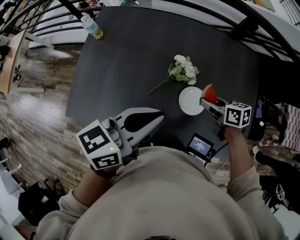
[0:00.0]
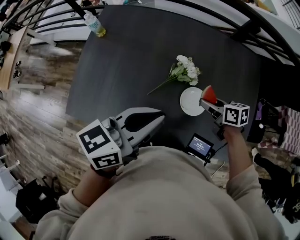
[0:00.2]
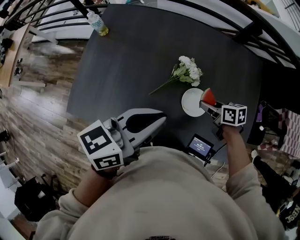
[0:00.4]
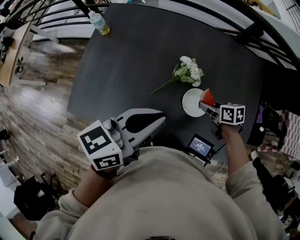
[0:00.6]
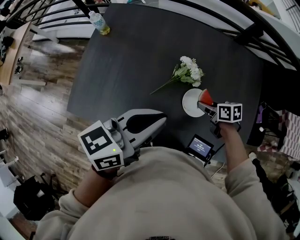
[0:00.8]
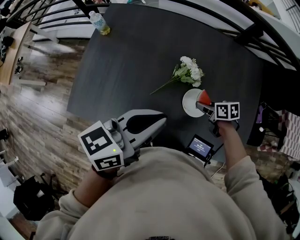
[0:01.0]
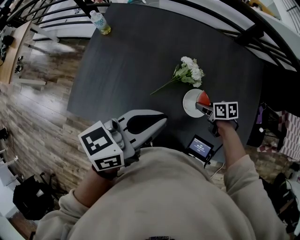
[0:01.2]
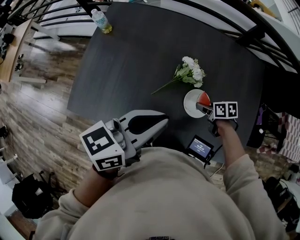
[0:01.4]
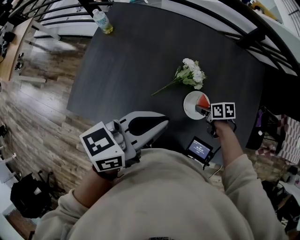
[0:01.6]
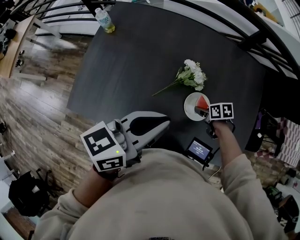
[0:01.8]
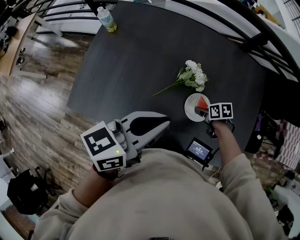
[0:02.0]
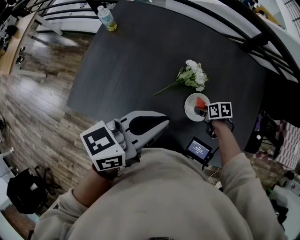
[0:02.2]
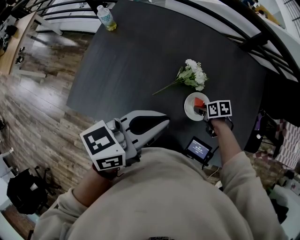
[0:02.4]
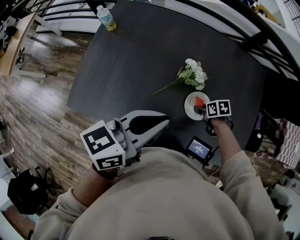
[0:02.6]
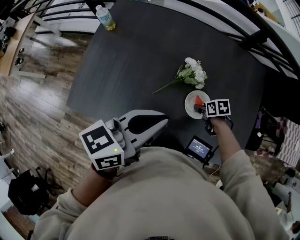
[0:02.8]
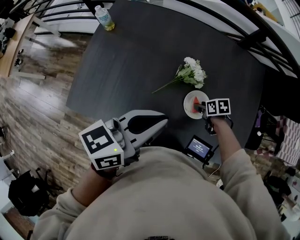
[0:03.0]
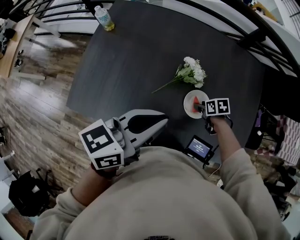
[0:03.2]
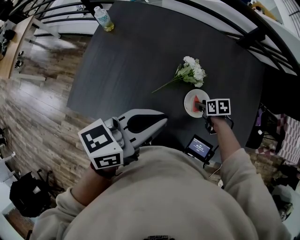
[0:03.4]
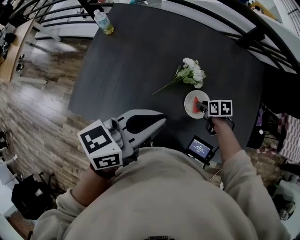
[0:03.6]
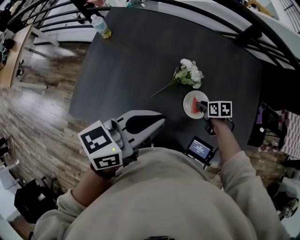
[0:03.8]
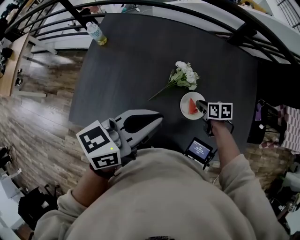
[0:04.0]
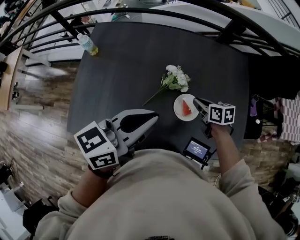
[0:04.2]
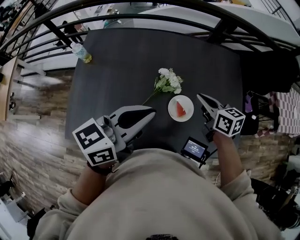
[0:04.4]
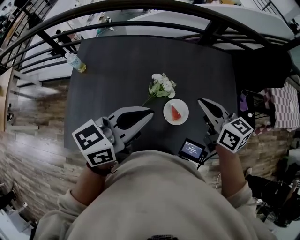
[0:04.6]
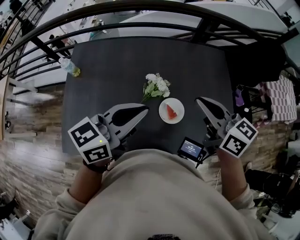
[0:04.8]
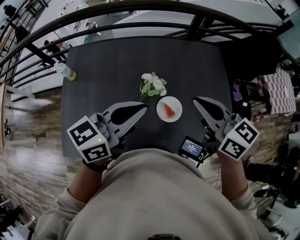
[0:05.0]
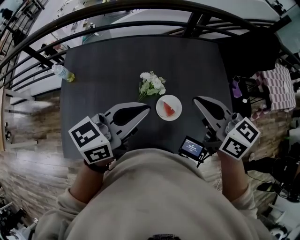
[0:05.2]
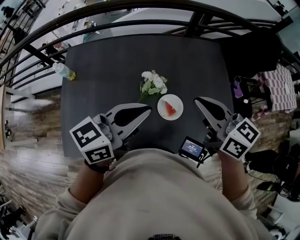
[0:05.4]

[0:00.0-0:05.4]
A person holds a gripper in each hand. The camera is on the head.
0:00.0 to 0:01.4: The right gripper heads downward, covering some 10 cm.
0:01.4 to 0:02.8: There are only small adjustments of the grippers.
0:02.8 to 0:04.0: The right gripper shifts about 5 cm upward, and closes up.
0:04.0 to 0:05.4: The right gripper is displaced upward by about 35 cm, and angles its fingers upward, by some 40 degrees. Meanwhile the left gripper shifts by some 5 cm.

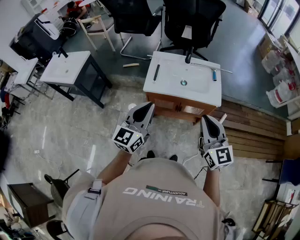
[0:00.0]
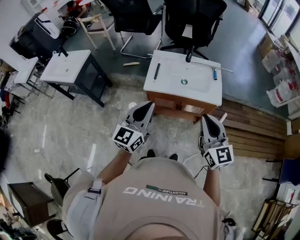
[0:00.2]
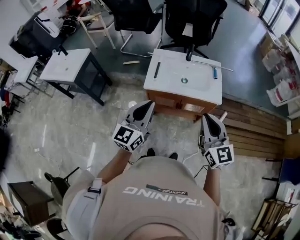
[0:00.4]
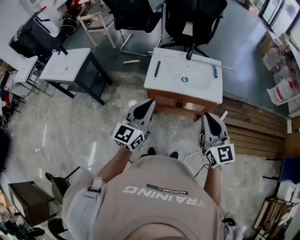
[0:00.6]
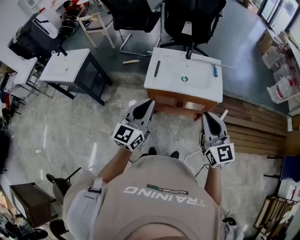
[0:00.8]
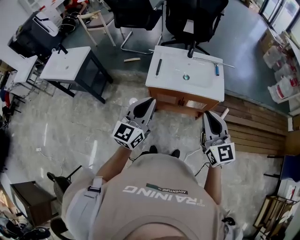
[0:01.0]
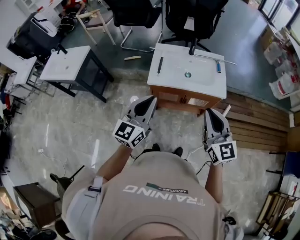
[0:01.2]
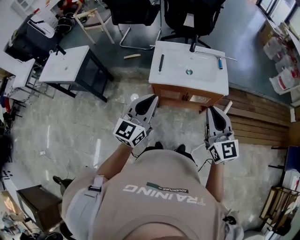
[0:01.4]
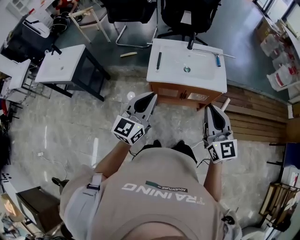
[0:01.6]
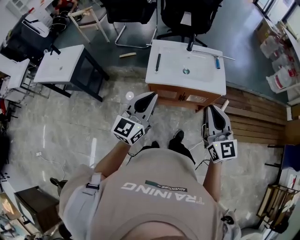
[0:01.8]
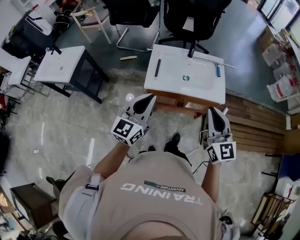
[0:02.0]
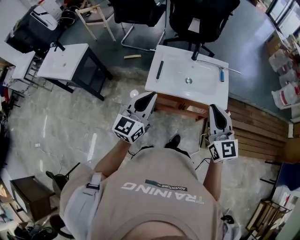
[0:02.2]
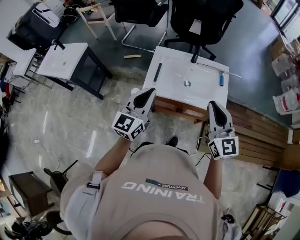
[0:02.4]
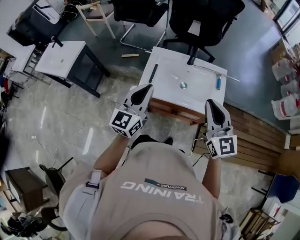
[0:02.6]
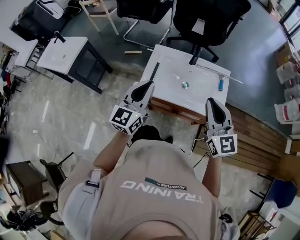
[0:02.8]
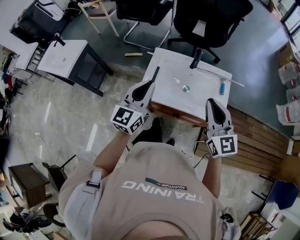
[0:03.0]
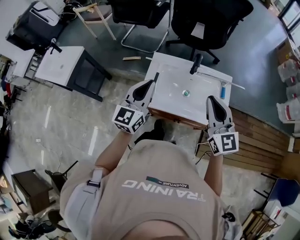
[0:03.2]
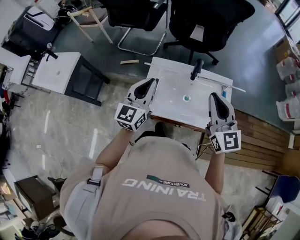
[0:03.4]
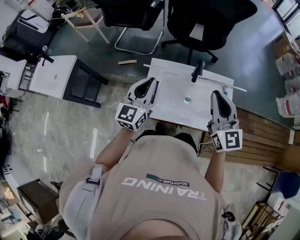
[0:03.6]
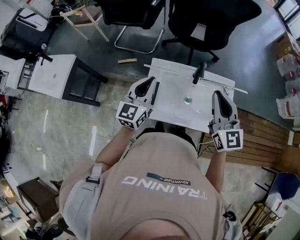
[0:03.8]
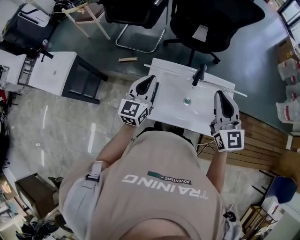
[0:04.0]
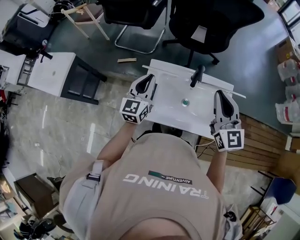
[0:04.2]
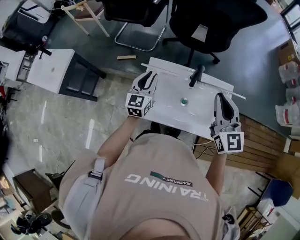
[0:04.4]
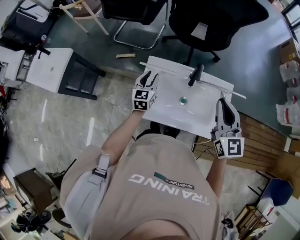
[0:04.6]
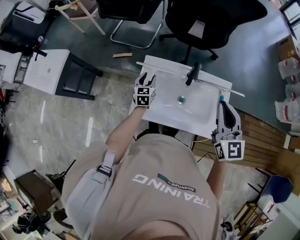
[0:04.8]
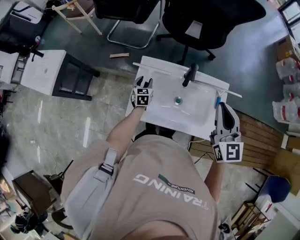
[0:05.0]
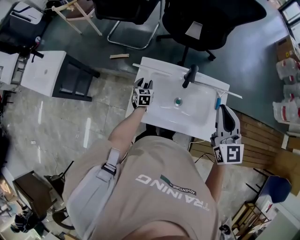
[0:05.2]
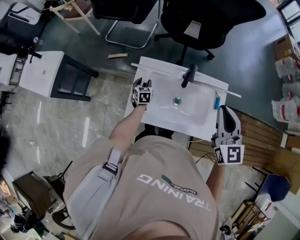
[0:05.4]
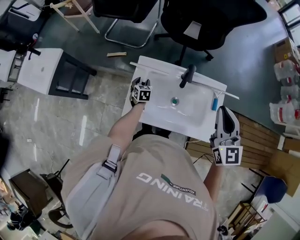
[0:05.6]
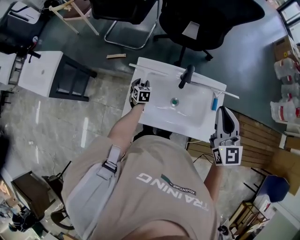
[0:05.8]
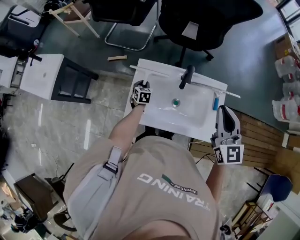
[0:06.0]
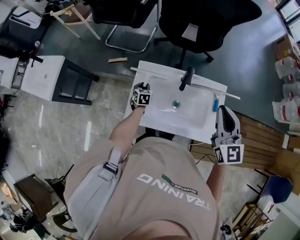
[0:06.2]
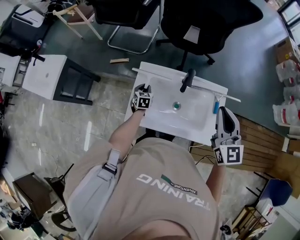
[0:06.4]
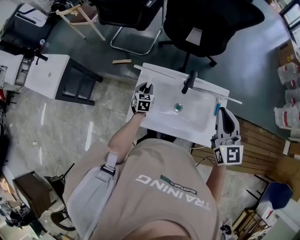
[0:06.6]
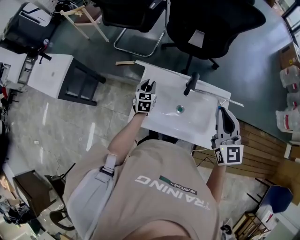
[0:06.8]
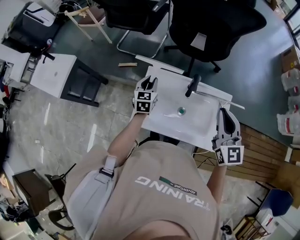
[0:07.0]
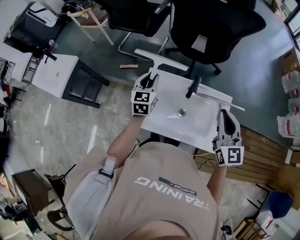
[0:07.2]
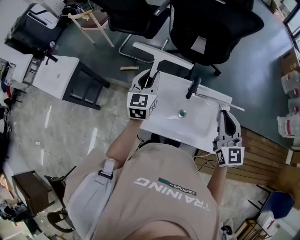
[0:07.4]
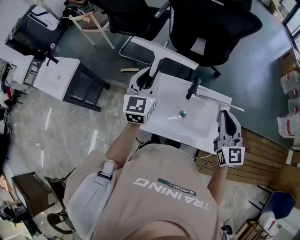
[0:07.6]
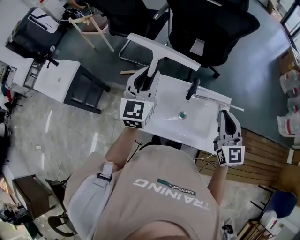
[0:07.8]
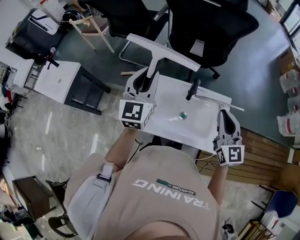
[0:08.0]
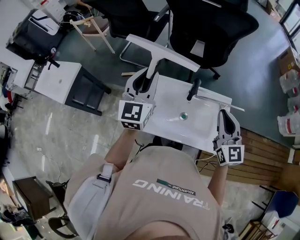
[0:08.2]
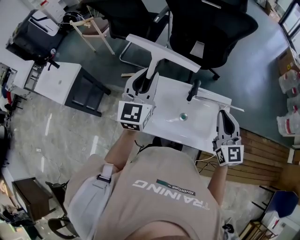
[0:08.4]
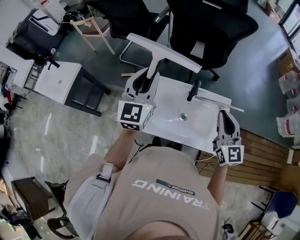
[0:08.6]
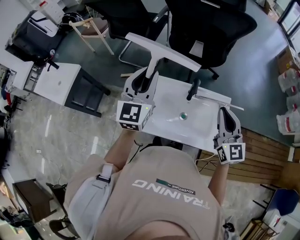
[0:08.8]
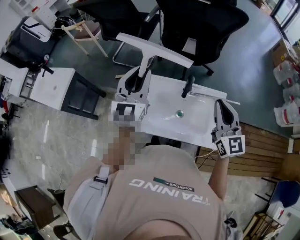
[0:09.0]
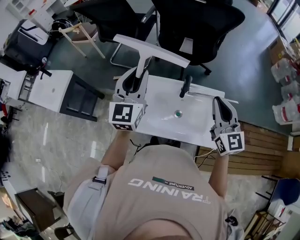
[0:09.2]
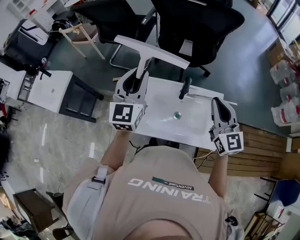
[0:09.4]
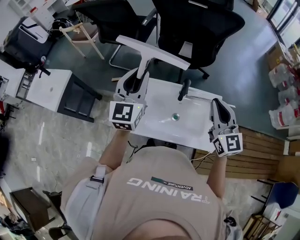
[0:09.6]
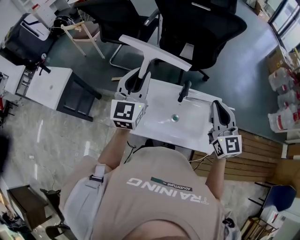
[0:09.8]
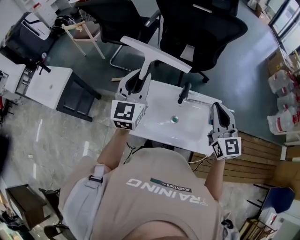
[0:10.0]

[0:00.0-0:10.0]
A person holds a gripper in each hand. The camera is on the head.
0:00.0 to 0:01.4: There are only small adjustments of the grippers.
0:01.4 to 0:02.8: The two grippers go about 20 cm forward.
0:02.8 to 0:04.2: Both grippers travel together forward, approximately 20 cm.
0:04.2 to 0:05.8: The right gripper goes roughly 5 cm to the right, while the left gripper shifts some 30 cm downward, tilts its fingers some 40 degrees downward, and opens its fingers.
0:05.8 to 0:07.2: The left gripper moves upward, some 30 cm, and swivels approximately 30 degrees.
0:07.2 to 0:08.6: The left gripper moves upward, approximately 20 cm, and turns by some 20 degrees.
0:08.6 to 0:10.0: The grippers move only a little.

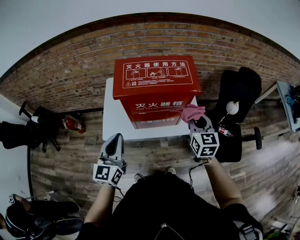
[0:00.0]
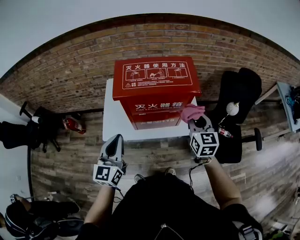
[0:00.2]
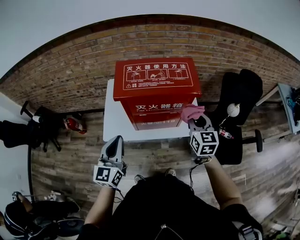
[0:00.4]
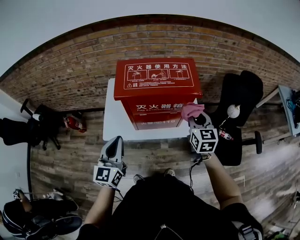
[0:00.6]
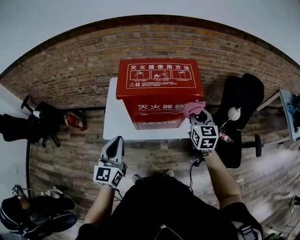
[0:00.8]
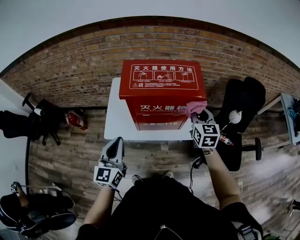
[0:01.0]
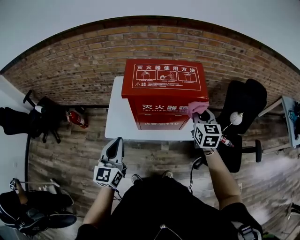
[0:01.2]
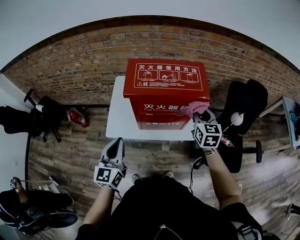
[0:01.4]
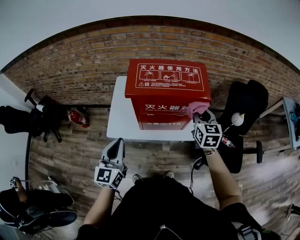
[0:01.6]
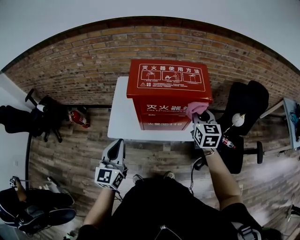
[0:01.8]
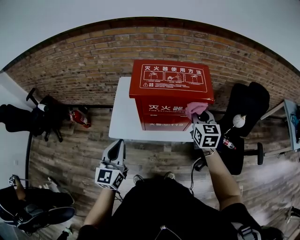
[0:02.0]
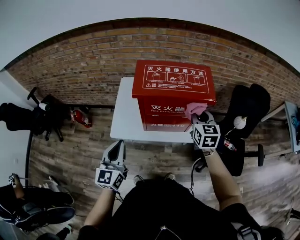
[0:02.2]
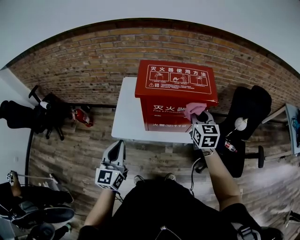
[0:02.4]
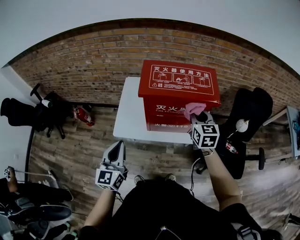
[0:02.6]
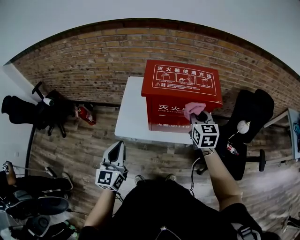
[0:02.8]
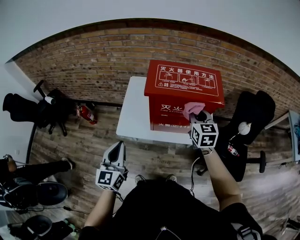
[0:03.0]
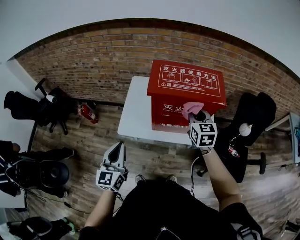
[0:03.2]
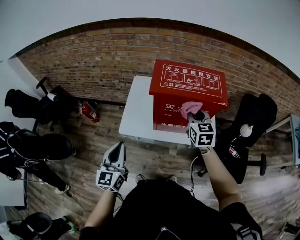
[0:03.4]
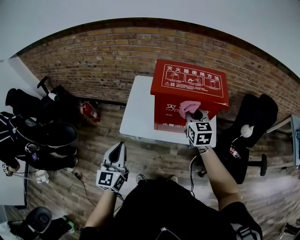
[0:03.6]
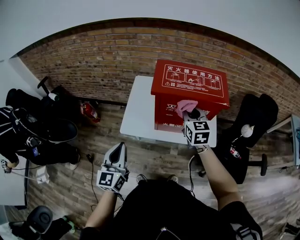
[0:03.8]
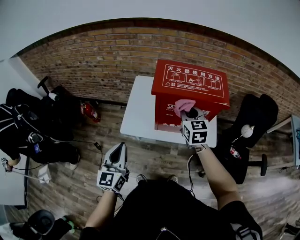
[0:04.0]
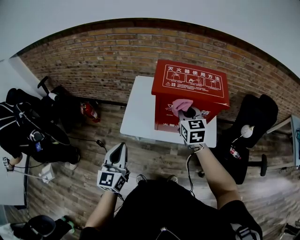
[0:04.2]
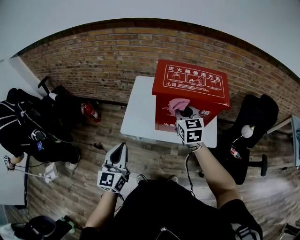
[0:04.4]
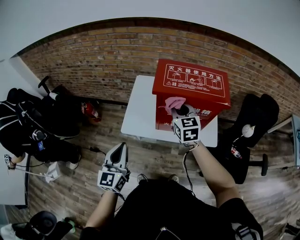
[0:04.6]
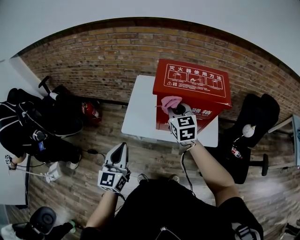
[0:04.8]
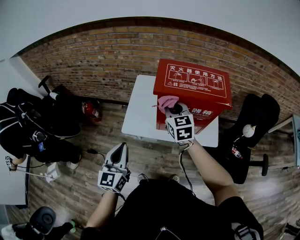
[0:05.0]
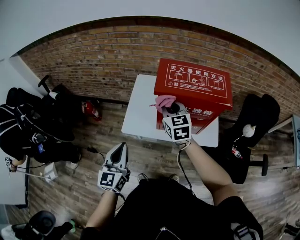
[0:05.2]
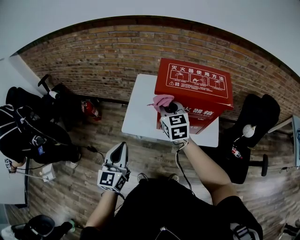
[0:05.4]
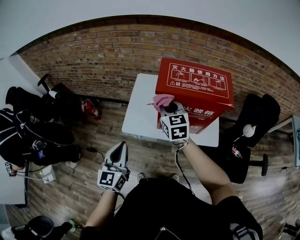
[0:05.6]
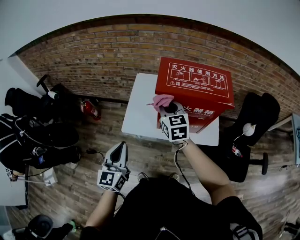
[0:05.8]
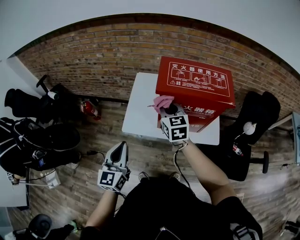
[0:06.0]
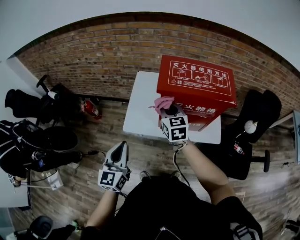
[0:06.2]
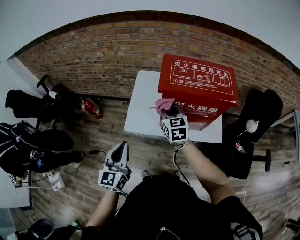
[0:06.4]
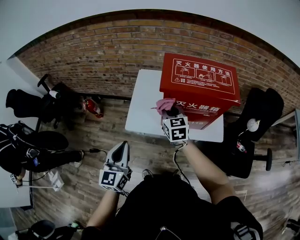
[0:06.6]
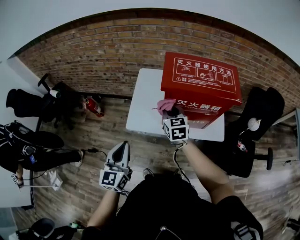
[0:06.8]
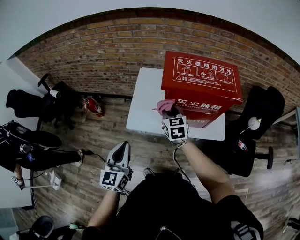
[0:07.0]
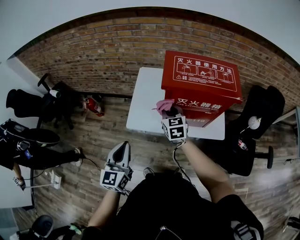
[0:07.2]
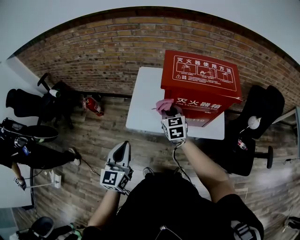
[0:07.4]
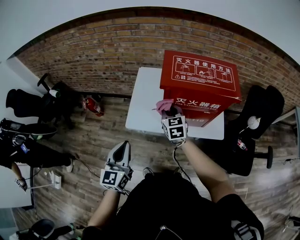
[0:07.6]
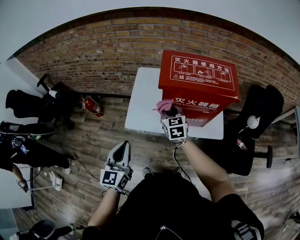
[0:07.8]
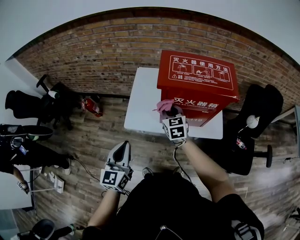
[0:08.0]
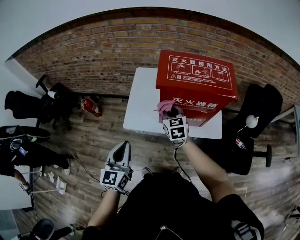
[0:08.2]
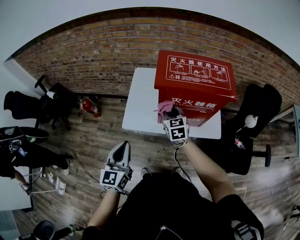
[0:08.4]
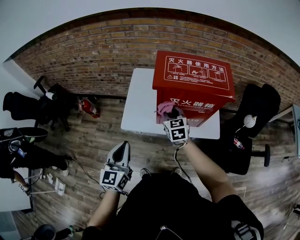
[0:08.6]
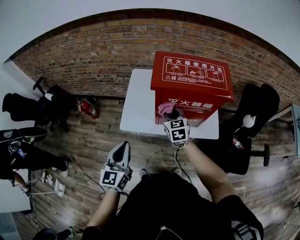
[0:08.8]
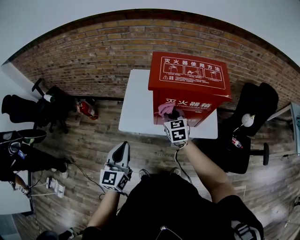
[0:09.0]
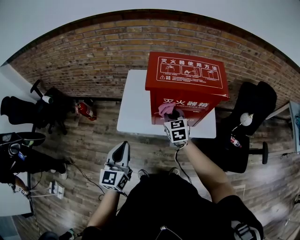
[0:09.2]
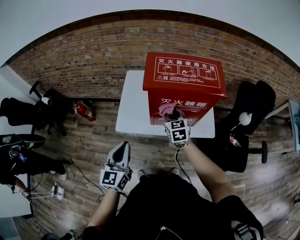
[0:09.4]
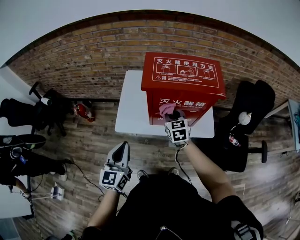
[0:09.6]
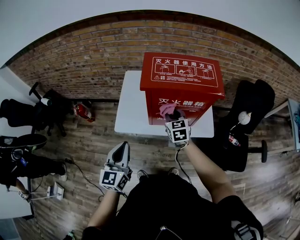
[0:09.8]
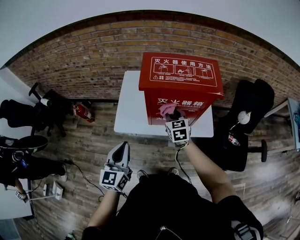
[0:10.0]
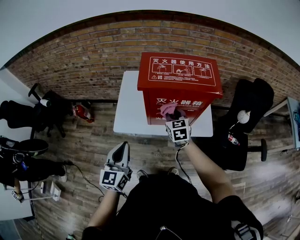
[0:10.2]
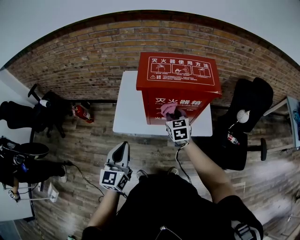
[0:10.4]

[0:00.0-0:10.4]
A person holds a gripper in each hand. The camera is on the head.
0:00.0 to 0:01.4: The right gripper goes roughly 5 cm forward.
0:01.4 to 0:03.0: The right gripper travels to the left by roughly 10 cm; the left gripper heads to the left, covering approximately 5 cm.
0:03.0 to 0:04.4: The right gripper travels to the left by some 10 cm.
0:04.4 to 0:06.0: The right gripper is displaced to the left by about 10 cm.
0:06.0 to 0:07.4: The right gripper moves downward, some 10 cm.
0:07.4 to 0:09.0: The right gripper is displaced to the right by approximately 5 cm.
0:09.0 to 0:10.4: The right gripper heads to the right, covering about 5 cm.
